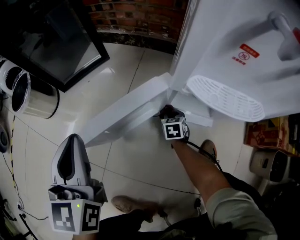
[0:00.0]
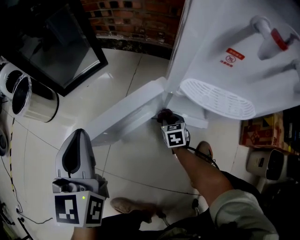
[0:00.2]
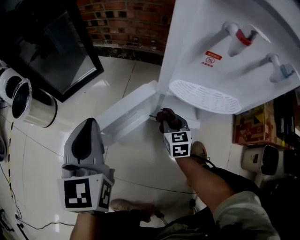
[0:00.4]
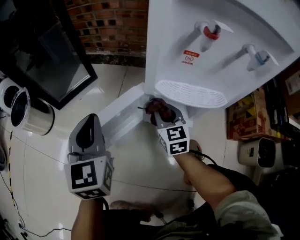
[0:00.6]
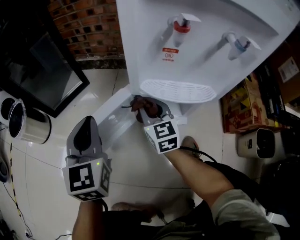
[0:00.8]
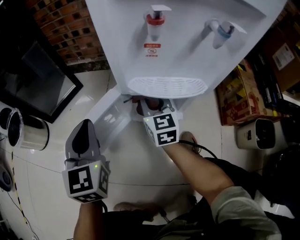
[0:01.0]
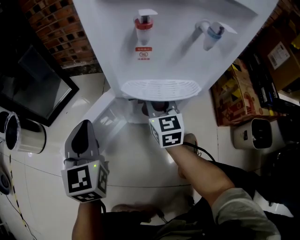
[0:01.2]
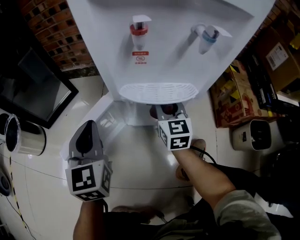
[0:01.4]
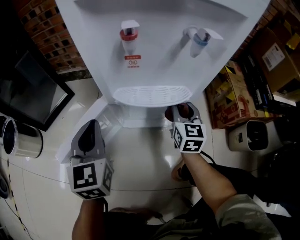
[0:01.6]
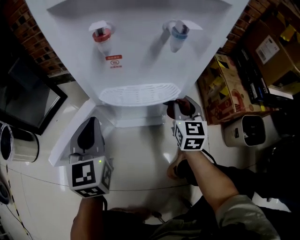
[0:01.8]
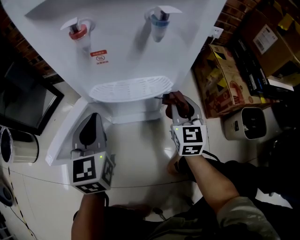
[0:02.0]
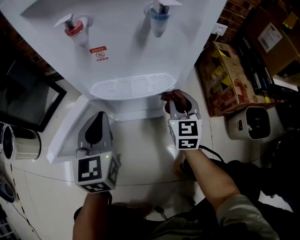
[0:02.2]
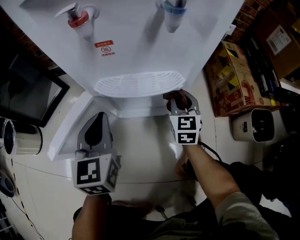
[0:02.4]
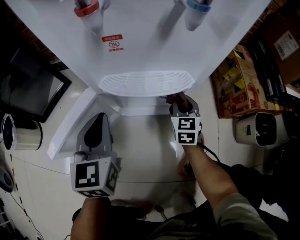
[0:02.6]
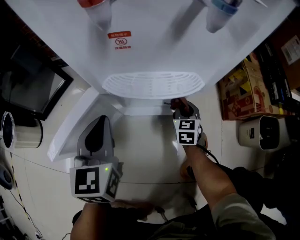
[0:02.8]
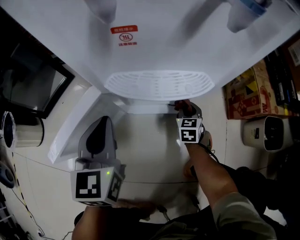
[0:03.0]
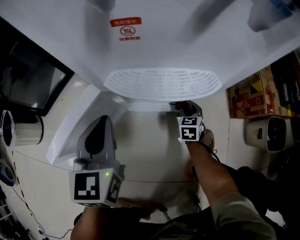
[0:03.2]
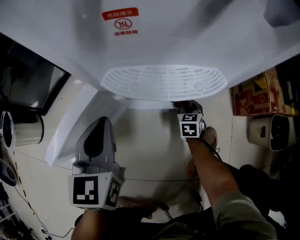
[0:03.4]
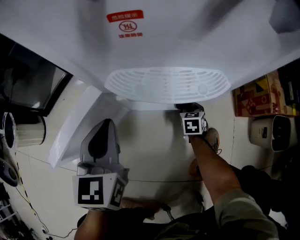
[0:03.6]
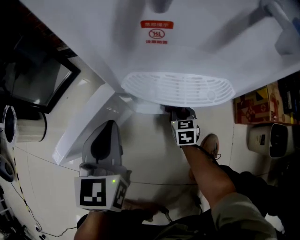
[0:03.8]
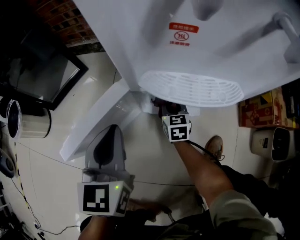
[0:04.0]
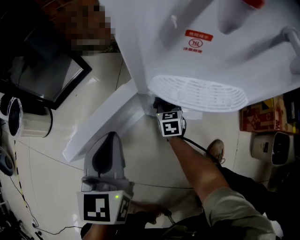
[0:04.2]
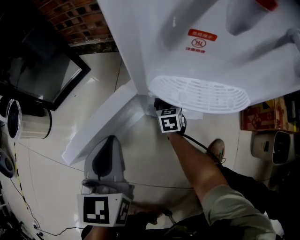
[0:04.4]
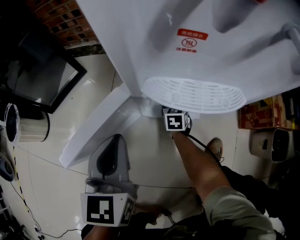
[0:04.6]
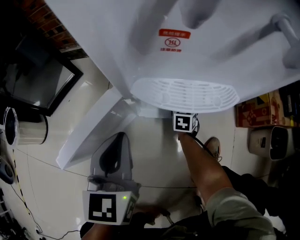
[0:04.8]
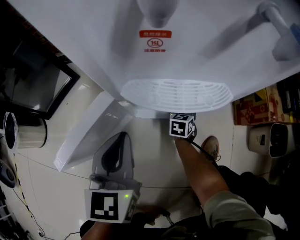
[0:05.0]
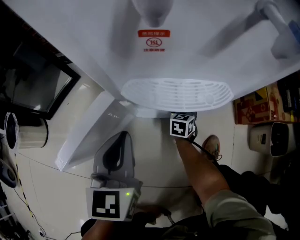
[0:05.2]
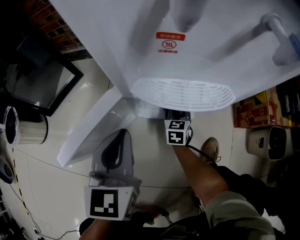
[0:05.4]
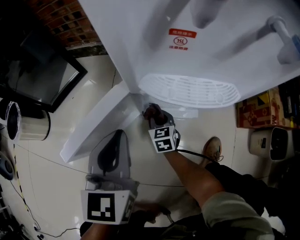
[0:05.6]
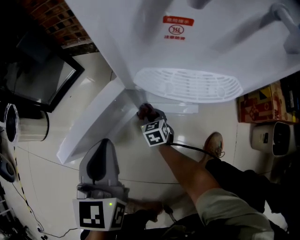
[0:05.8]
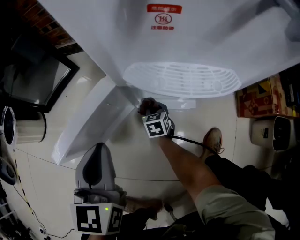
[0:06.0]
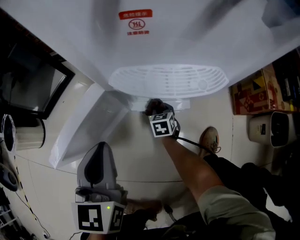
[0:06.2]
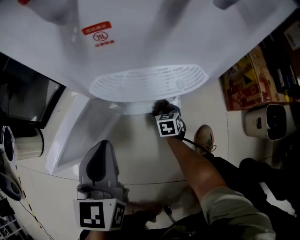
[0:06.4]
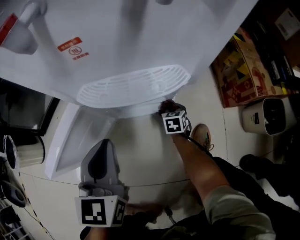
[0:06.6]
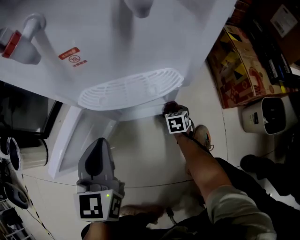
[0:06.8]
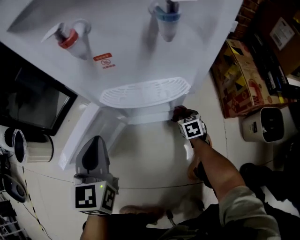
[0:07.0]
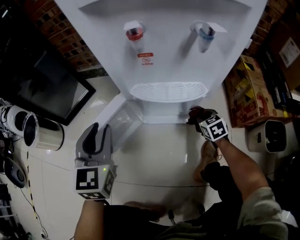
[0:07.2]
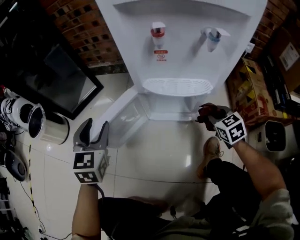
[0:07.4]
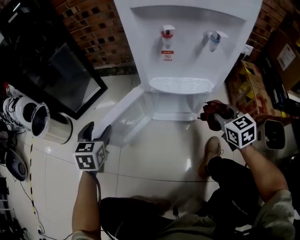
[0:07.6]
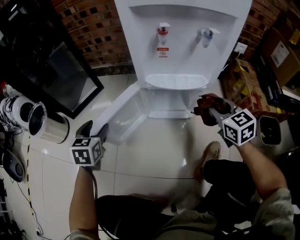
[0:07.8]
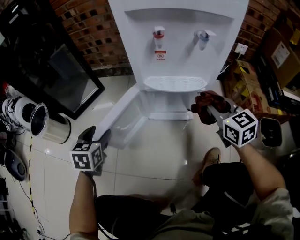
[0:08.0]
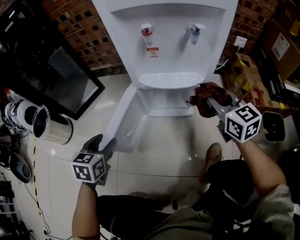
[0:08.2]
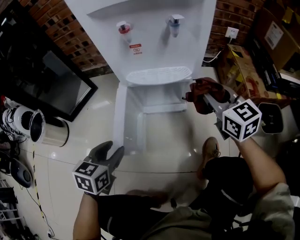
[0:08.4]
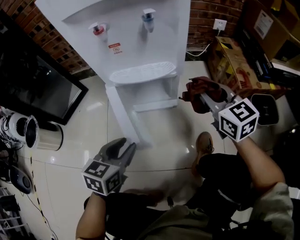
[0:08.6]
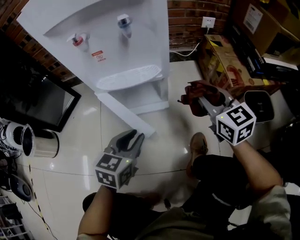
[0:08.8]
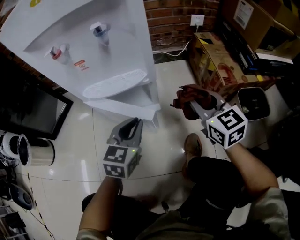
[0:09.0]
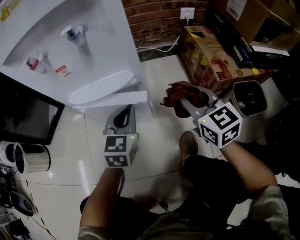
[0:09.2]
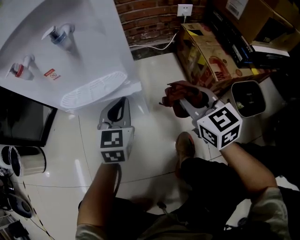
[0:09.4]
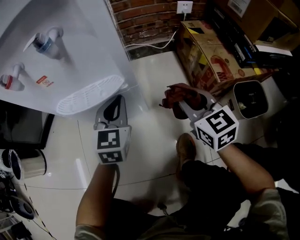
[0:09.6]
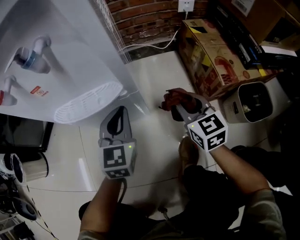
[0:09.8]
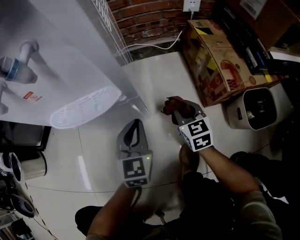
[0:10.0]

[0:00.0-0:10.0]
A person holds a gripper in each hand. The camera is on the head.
0:00.0 to 0:01.4: The left gripper is displaced to the right by about 15 cm, while the right gripper goes approximately 30 cm upward, and tilts its fingers approximately 40 degrees upward.
0:01.4 to 0:02.8: The left gripper heads to the right, covering approximately 5 cm. The right gripper heads downward and to the right, covering roughly 20 cm, and rotates approximately 20 degrees.
0:02.8 to 0:04.2: The right gripper goes some 20 cm to the left; the left gripper goes about 5 cm to the left.
0:04.2 to 0:05.8: The right gripper shifts about 5 cm backward, and reaches about 15 cm to the right, then returns, while the left gripper goes to the right and returns, roughly 10 cm each way.
0:05.8 to 0:07.2: The left gripper is displaced upward by approximately 5 cm, and goes to the right and returns, approximately 10 cm each way, while the right gripper goes about 30 cm to the right and upward.
0:07.2 to 0:08.6: The right gripper shifts about 25 cm upward, and turns by about 30 degrees. Meanwhile the left gripper is displaced backward, to the right and downward by approximately 20 cm, changes its angle by some 40 degrees, and opens and closes again.
0:08.6 to 0:10.0: The right gripper goes about 25 cm downward. Meanwhile the left gripper is displaced to the right, forward and downward by roughly 25 cm, changes its angle by approximately 20 degrees, and closes its fingers.

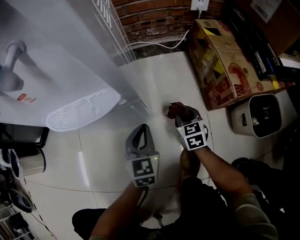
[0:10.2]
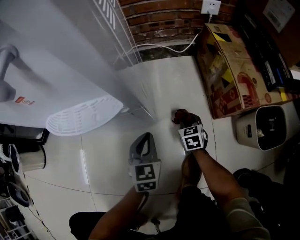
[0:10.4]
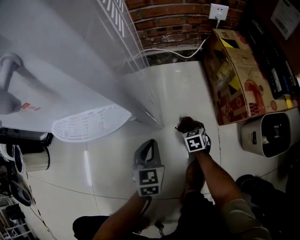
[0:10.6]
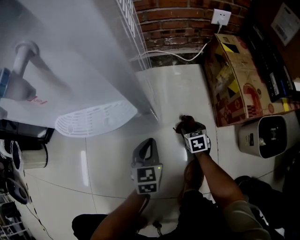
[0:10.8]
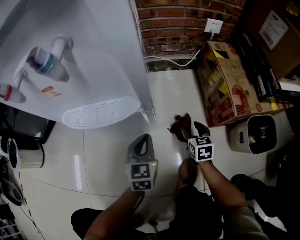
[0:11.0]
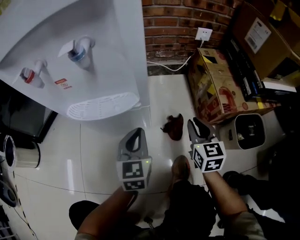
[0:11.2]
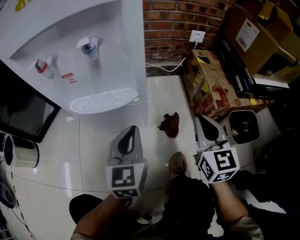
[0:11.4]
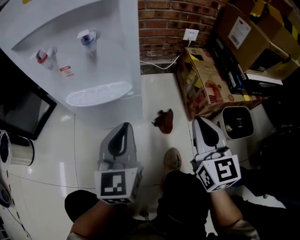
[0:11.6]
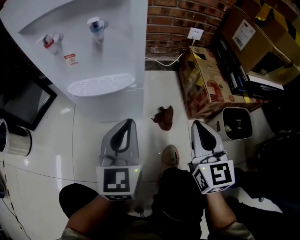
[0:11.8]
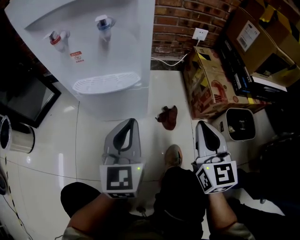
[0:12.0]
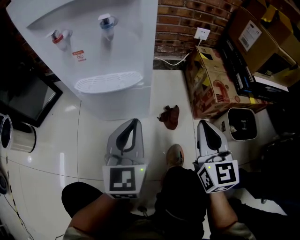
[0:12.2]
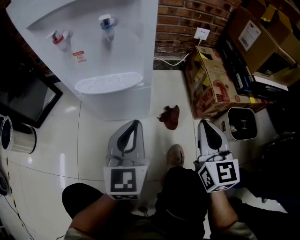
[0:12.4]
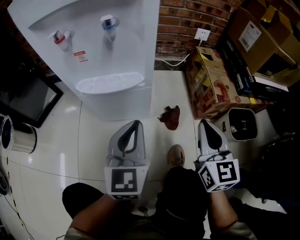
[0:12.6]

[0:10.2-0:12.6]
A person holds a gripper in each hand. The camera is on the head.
0:10.2 to 0:11.4: The left gripper travels upward by some 20 cm, while the right gripper is displaced upward by some 30 cm, turns by some 20 degrees, and opens, then closes again.
0:11.4 to 0:12.6: The grippers both shift backward by roughly 5 cm.

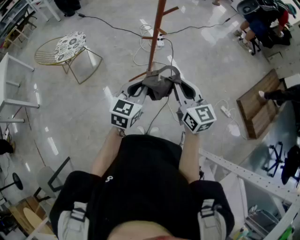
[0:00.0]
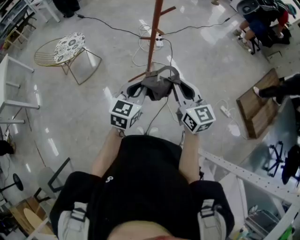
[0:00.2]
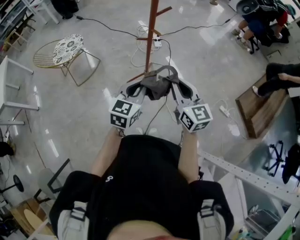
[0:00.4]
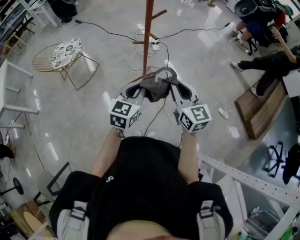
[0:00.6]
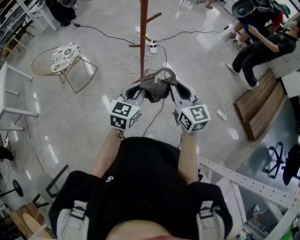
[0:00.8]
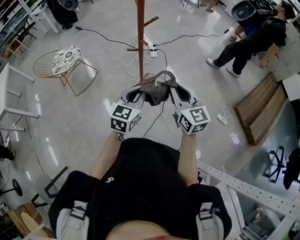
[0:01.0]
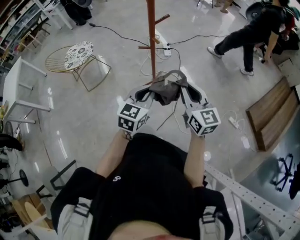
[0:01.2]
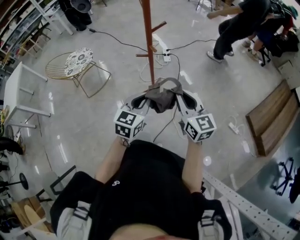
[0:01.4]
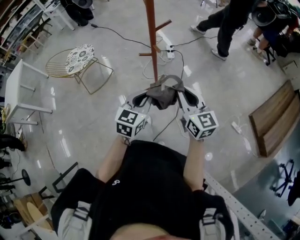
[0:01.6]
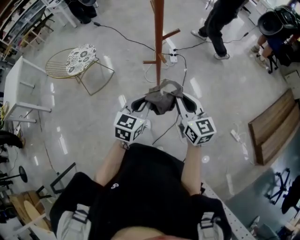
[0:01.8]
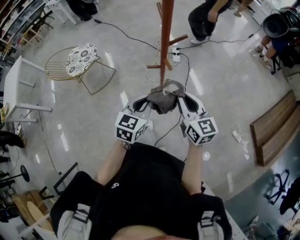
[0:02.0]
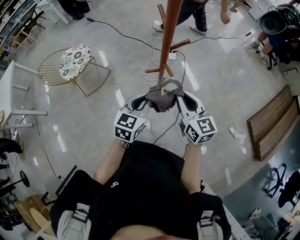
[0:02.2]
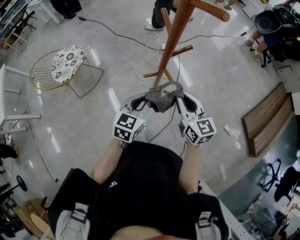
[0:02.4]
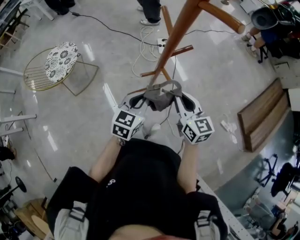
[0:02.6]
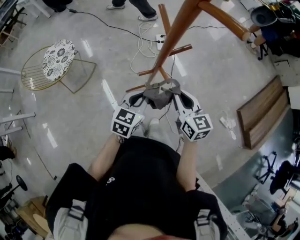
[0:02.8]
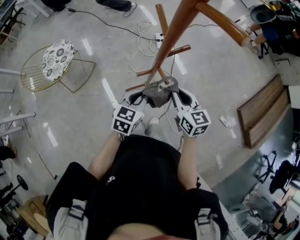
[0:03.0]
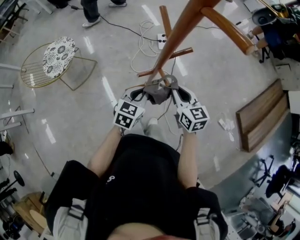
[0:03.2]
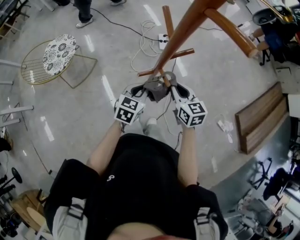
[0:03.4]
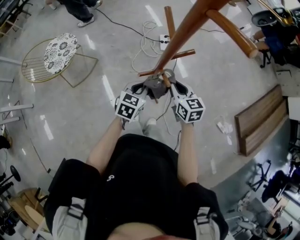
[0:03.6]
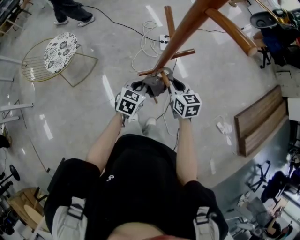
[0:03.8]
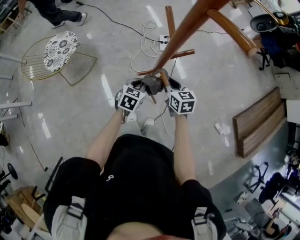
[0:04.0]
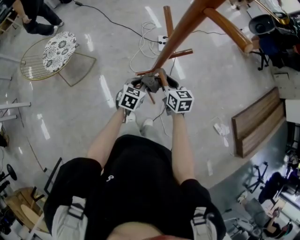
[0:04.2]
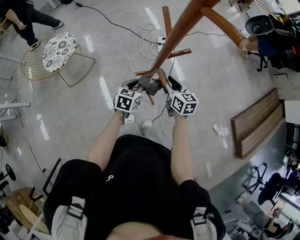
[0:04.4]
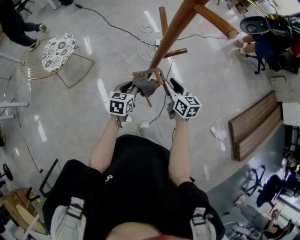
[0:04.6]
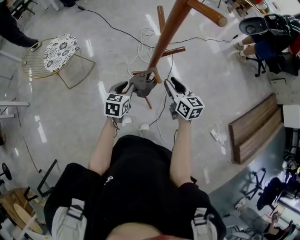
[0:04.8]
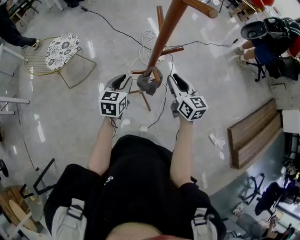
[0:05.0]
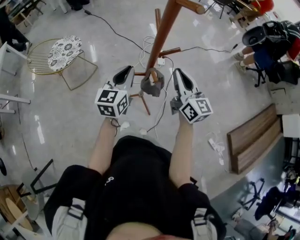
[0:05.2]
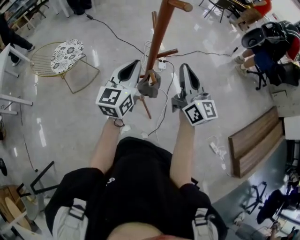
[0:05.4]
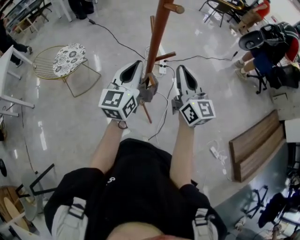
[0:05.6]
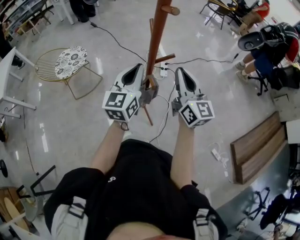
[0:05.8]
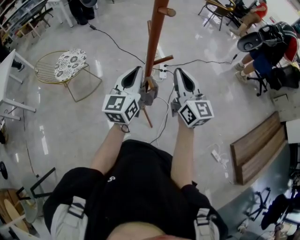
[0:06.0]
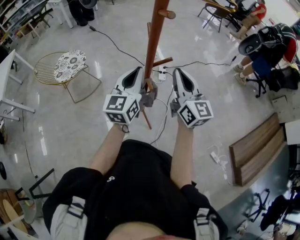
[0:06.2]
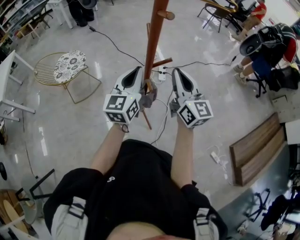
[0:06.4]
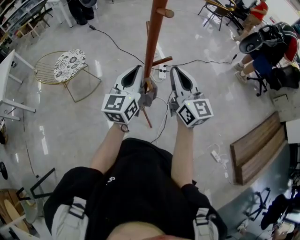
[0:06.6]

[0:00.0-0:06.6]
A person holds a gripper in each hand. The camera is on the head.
0:00.0 to 0:01.6: The right gripper travels forward and to the right by some 10 cm; the left gripper heads to the right and forward, covering some 10 cm.
0:01.6 to 0:03.2: The two grippers go approximately 25 cm forward and downward.
0:03.2 to 0:05.0: The right gripper reaches some 5 cm downward, then returns; the left gripper goes approximately 5 cm to the left, goes downward and returns, some 10 cm each way, and turns by approximately 20 degrees.
0:05.0 to 0:06.6: The two grippers go some 20 cm upward. The left gripper tips its fingers upward by about 30 degrees, and closes its fingers; the right gripper turns by roughly 20 degrees, and closes its fingers.

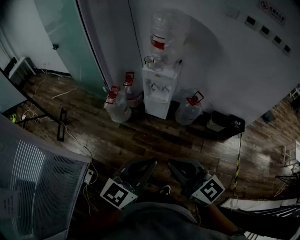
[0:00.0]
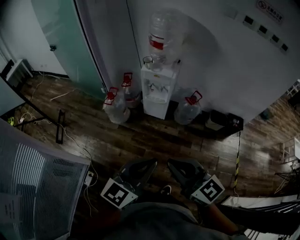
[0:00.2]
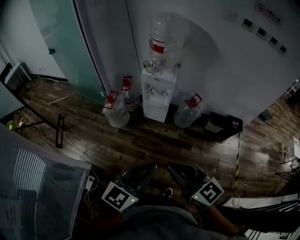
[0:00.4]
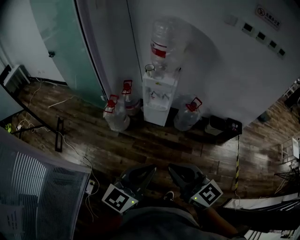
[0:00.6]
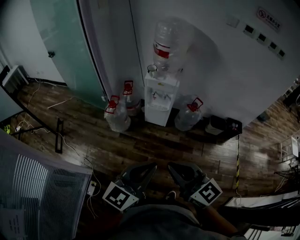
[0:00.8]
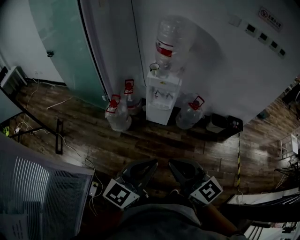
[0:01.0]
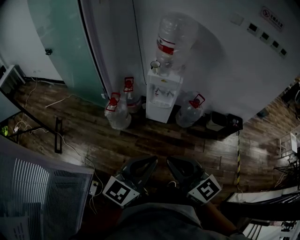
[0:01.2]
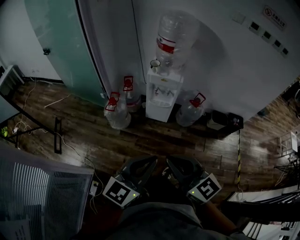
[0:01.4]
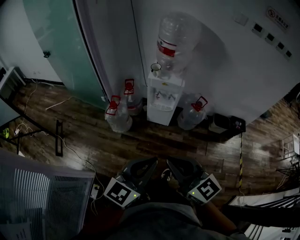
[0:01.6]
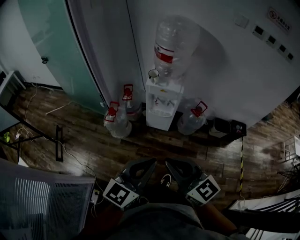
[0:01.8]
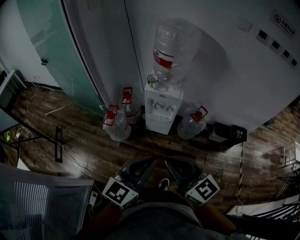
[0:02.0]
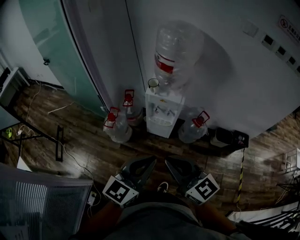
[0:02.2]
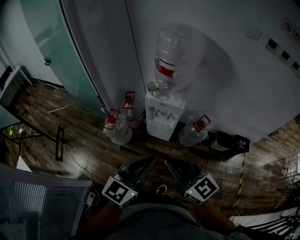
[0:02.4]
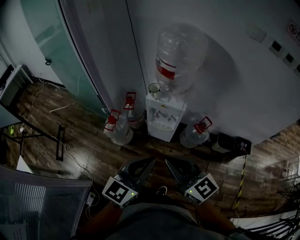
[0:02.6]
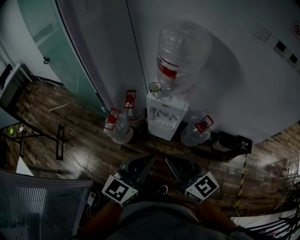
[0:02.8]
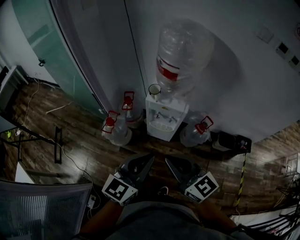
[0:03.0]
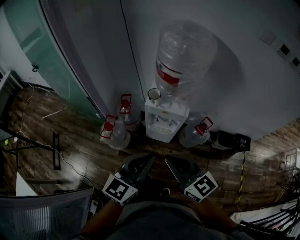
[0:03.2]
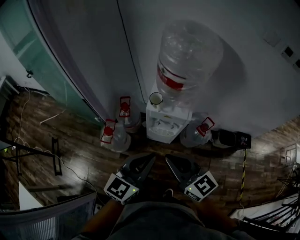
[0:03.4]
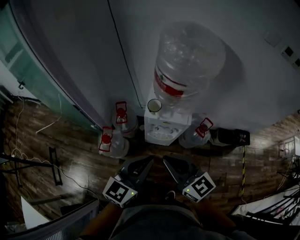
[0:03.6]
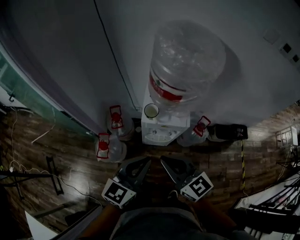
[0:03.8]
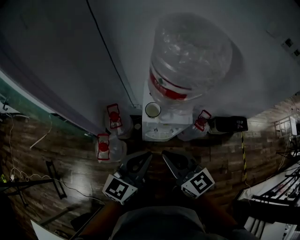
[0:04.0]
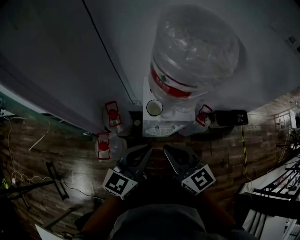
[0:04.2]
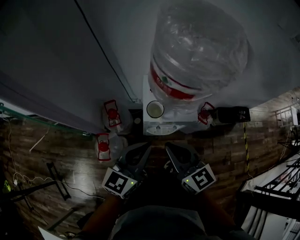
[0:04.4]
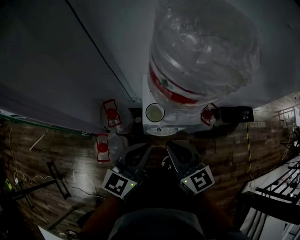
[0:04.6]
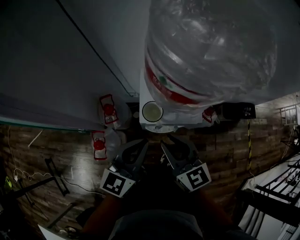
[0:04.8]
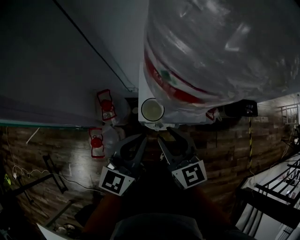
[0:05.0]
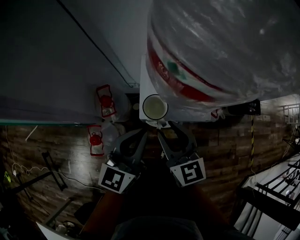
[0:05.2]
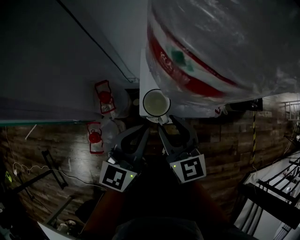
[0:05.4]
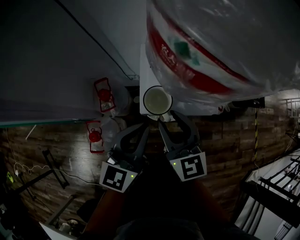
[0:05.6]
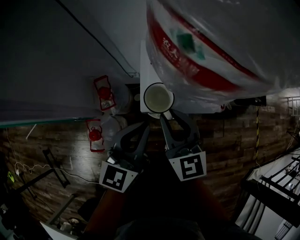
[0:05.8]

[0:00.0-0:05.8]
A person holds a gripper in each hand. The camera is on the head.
0:00.0 to 0:01.4: The grippers both shift to the left and forward by some 15 cm.
0:01.4 to 0:02.8: Both grippers travel together forward, about 25 cm.
0:02.8 to 0:04.4: The grippers both shift forward by roughly 30 cm. The right gripper changes its angle by about 30 degrees.
0:04.4 to 0:05.8: The two grippers go roughly 20 cm downward and forward. The right gripper opens up.
